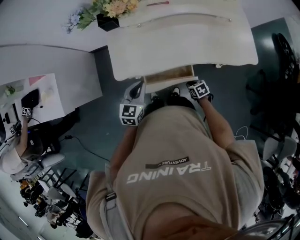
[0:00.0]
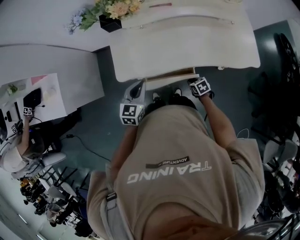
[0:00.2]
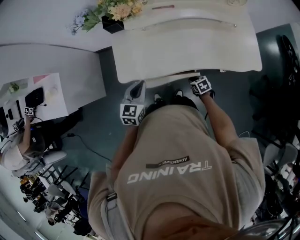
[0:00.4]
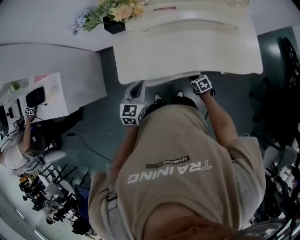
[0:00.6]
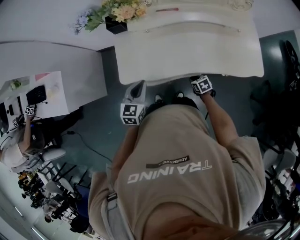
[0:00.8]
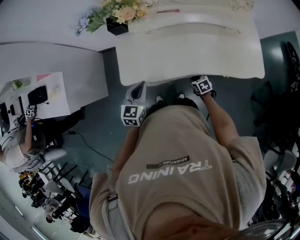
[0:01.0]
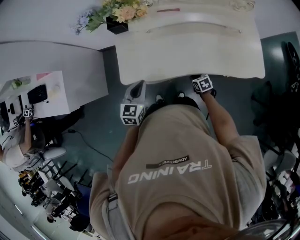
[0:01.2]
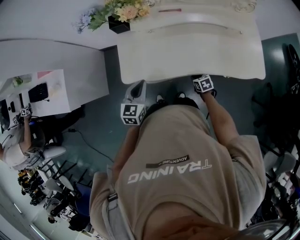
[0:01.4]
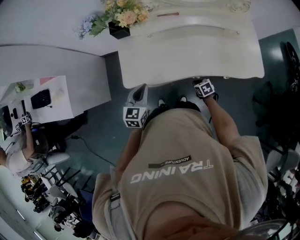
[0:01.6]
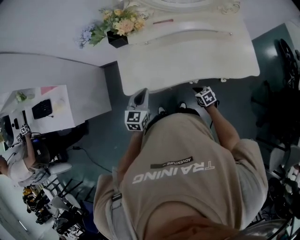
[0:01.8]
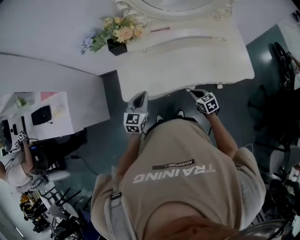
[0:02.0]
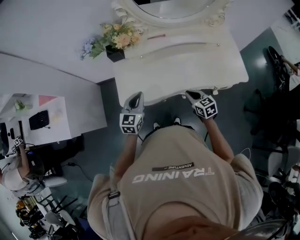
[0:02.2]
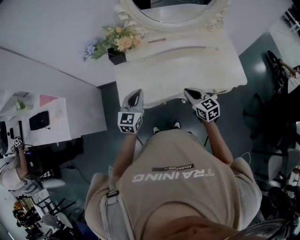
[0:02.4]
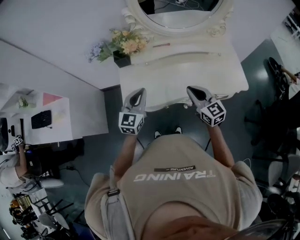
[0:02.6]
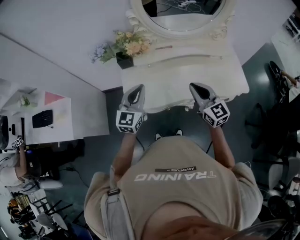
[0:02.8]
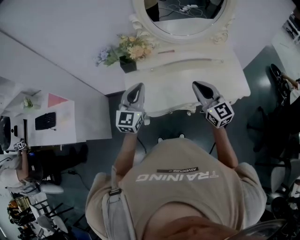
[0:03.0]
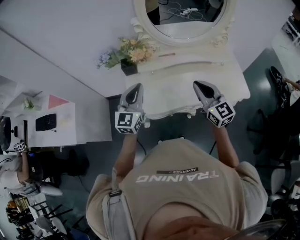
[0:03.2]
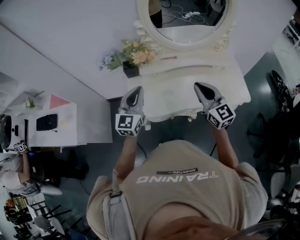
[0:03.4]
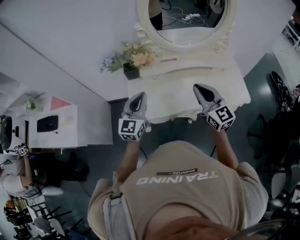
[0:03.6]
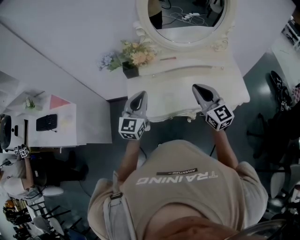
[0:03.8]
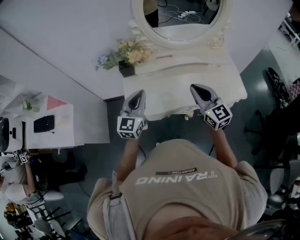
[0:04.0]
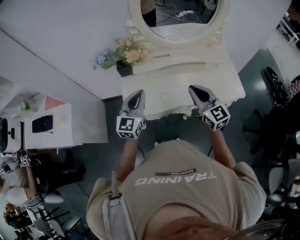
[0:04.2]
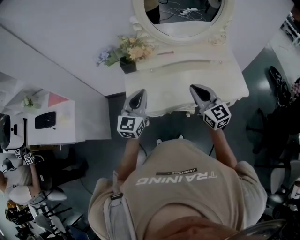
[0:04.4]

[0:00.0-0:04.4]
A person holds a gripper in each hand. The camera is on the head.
0:00.0 to 0:01.4: The right gripper moves forward, roughly 10 cm. The left gripper moves roughly 5 cm.
0:01.4 to 0:03.0: The left gripper travels upward by approximately 20 cm, and rotates approximately 30 degrees. Meanwhile the right gripper shifts approximately 50 cm upward, and tilts its fingers about 60 degrees upward.
0:03.0 to 0:04.4: The grippers stay close to where they were, moving slightly.

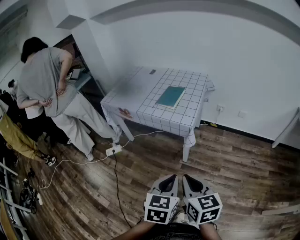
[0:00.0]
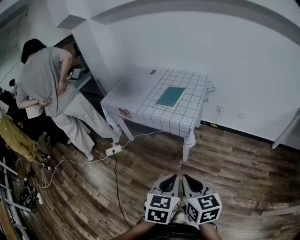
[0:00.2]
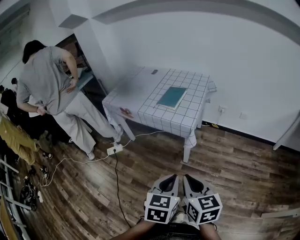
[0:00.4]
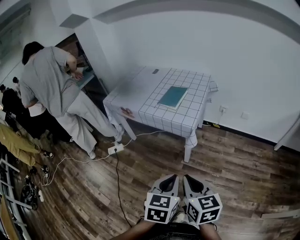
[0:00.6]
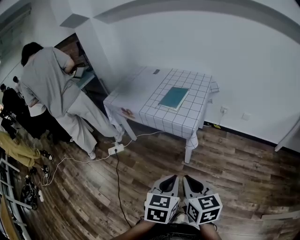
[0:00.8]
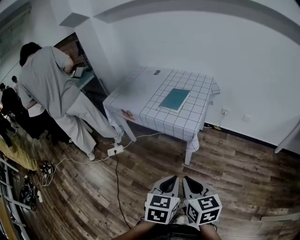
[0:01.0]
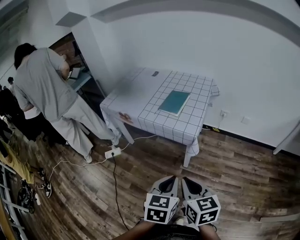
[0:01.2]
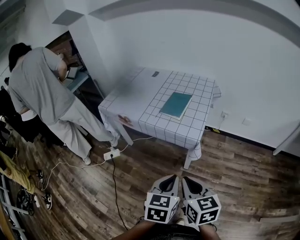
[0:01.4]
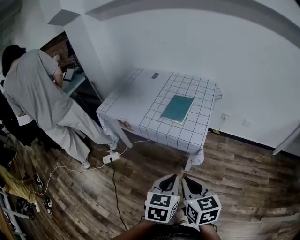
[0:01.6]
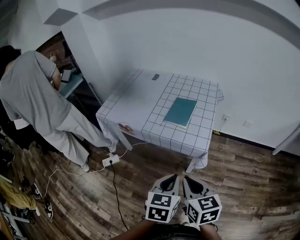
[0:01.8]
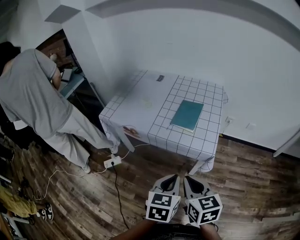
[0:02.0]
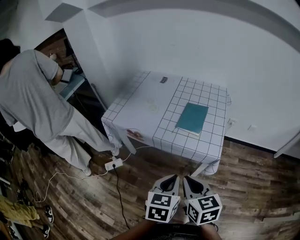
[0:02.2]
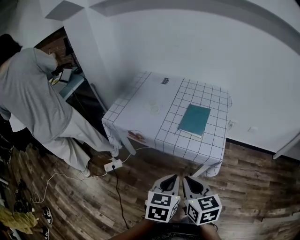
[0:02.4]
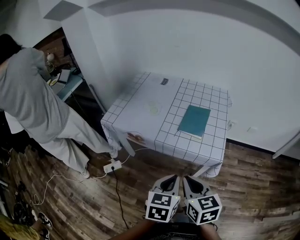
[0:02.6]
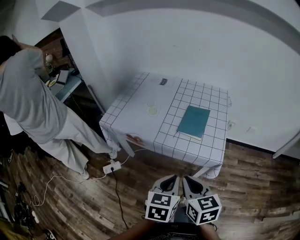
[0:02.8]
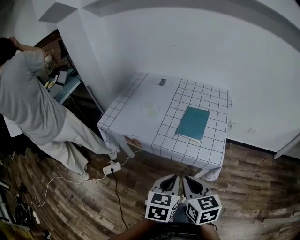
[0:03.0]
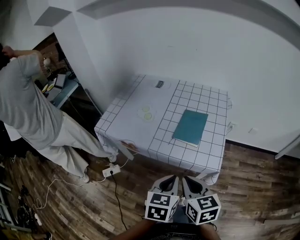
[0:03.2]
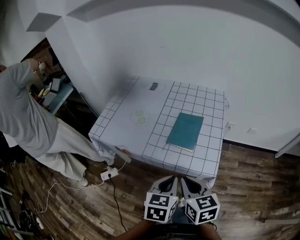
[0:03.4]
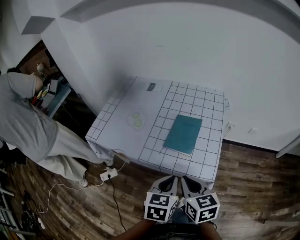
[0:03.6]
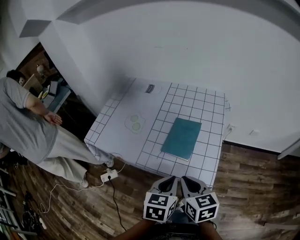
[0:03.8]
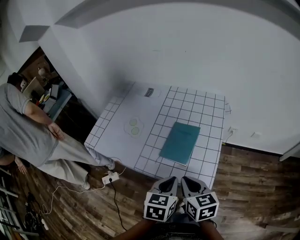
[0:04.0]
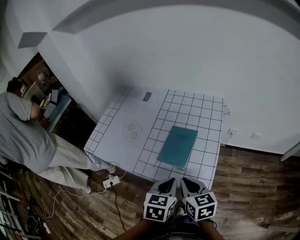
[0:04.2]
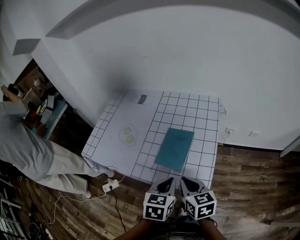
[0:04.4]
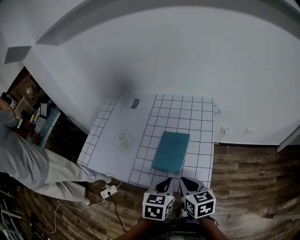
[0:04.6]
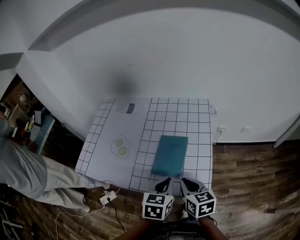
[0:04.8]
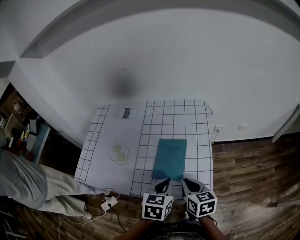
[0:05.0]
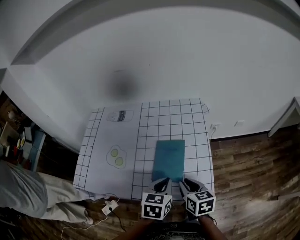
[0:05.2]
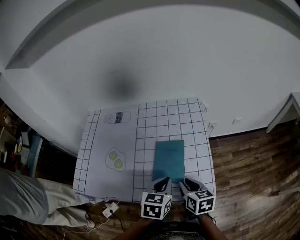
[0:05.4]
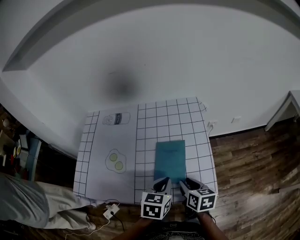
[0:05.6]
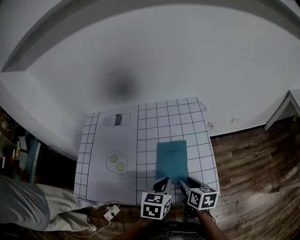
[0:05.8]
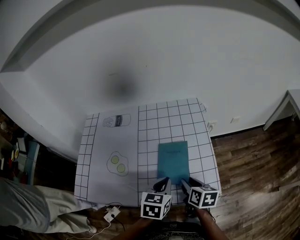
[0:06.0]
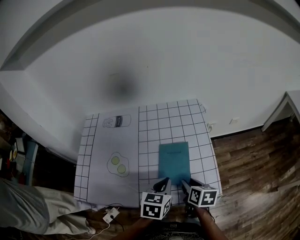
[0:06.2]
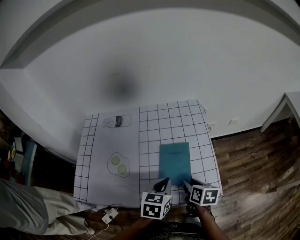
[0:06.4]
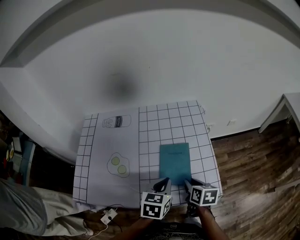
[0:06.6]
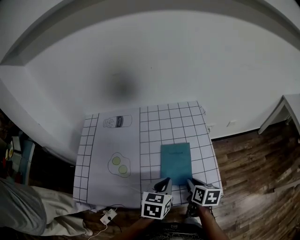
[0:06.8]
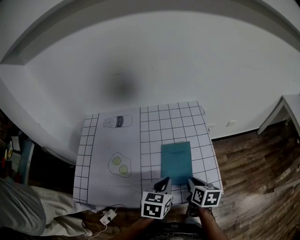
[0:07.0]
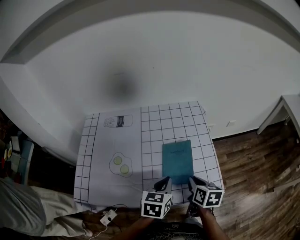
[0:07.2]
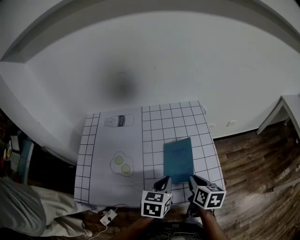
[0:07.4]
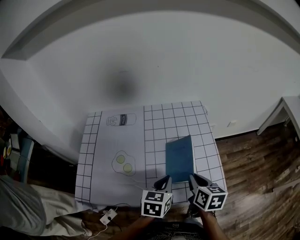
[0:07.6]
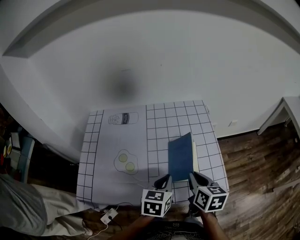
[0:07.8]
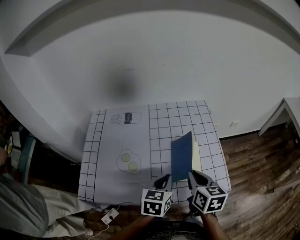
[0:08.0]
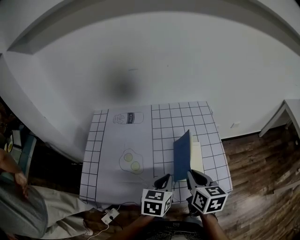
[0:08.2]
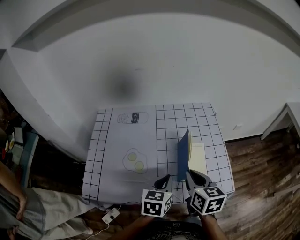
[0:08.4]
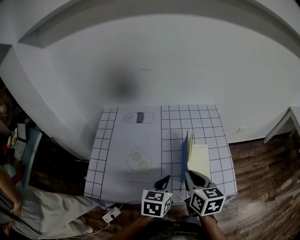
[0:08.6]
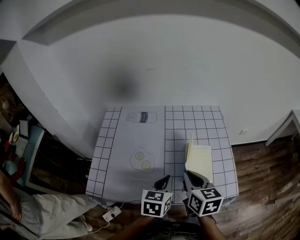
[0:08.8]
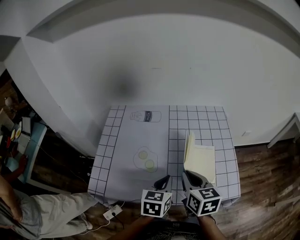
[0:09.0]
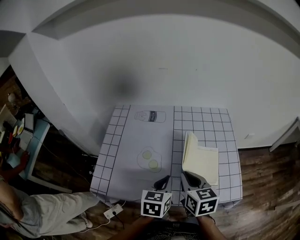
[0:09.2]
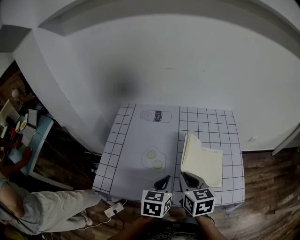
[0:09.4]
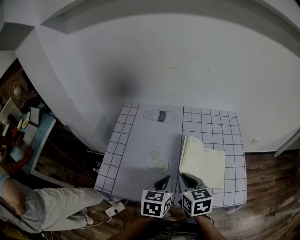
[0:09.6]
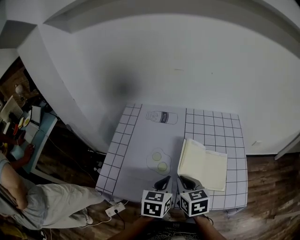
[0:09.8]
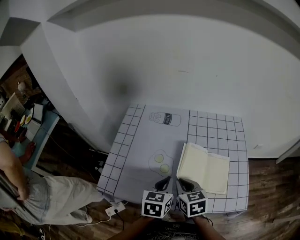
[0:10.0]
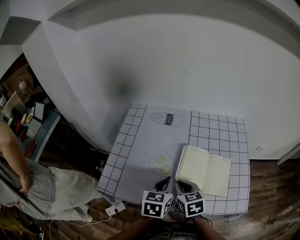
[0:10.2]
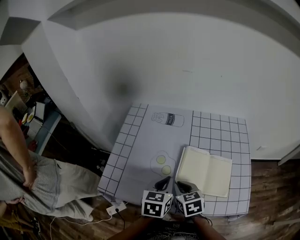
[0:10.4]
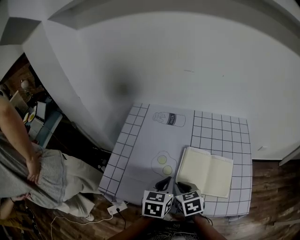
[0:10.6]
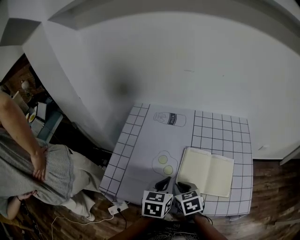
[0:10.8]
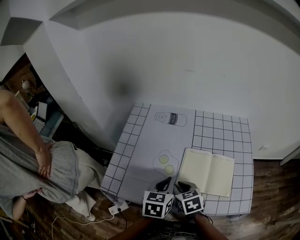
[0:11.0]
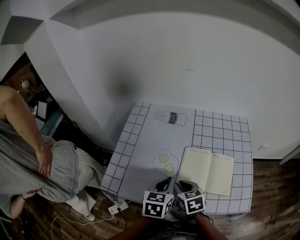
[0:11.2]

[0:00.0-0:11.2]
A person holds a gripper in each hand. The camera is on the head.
0:00.0 to 0:01.6: Both grippers travel together forward, some 15 cm.
0:01.6 to 0:03.2: The grippers both shift forward and to the left by some 20 cm.
0:03.2 to 0:04.8: The right gripper heads forward, to the right and downward, covering about 20 cm, while the left gripper shifts approximately 20 cm forward and to the right.
0:04.8 to 0:06.4: The left gripper moves to the left and forward, some 10 cm; the right gripper moves downward, approximately 5 cm, rotates some 30 degrees, and opens up.
0:06.4 to 0:08.0: The left gripper goes roughly 5 cm to the left; the right gripper shifts approximately 10 cm upward and to the left, and closes.
0:08.0 to 0:09.6: Both grippers move to the left, approximately 15 cm. The right gripper rotates approximately 20 degrees.
0:09.6 to 0:11.2: The right gripper travels downward by approximately 10 cm.

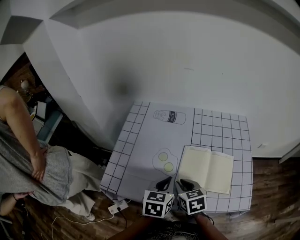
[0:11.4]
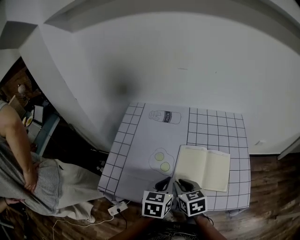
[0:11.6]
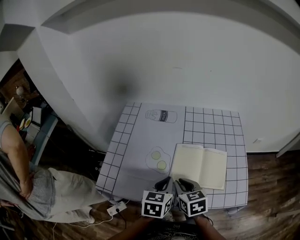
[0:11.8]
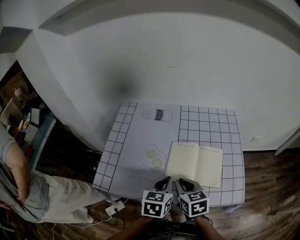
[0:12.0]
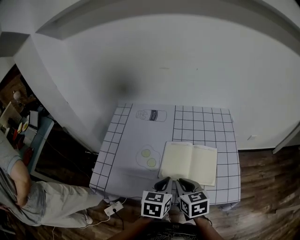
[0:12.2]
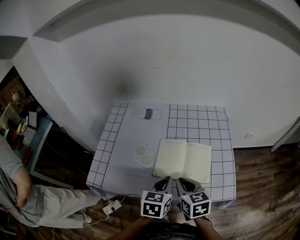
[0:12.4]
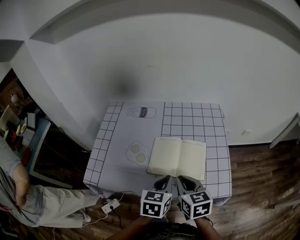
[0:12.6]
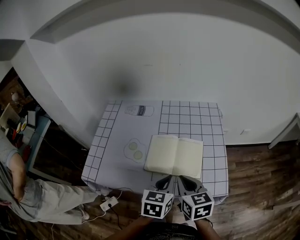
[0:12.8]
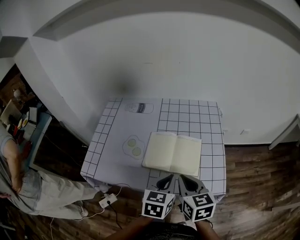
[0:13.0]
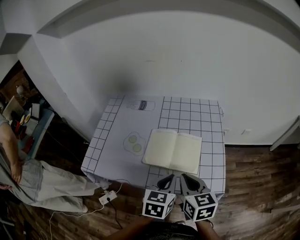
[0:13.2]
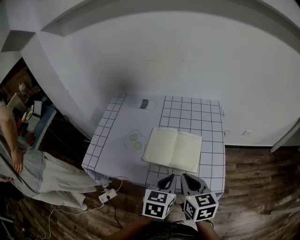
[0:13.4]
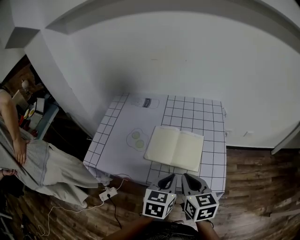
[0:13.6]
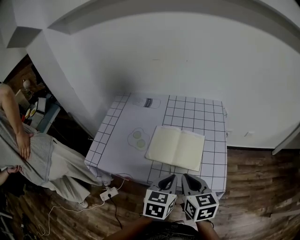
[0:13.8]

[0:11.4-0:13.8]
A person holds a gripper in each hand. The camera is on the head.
0:11.4 to 0:12.6: The right gripper heads to the right, upward and backward, covering approximately 15 cm; the left gripper travels to the right and backward by approximately 15 cm.
0:12.6 to 0:13.8: The grippers both shift backward by some 5 cm.

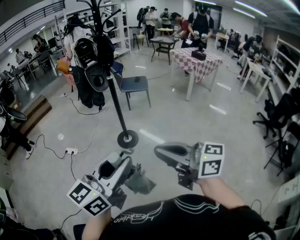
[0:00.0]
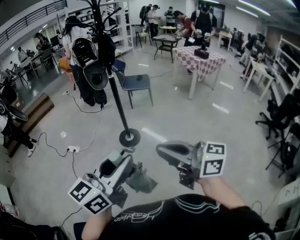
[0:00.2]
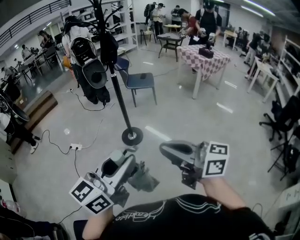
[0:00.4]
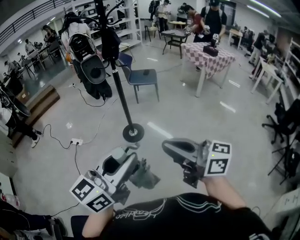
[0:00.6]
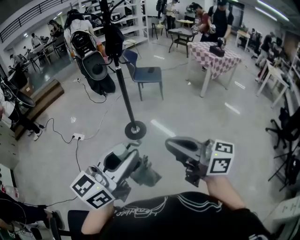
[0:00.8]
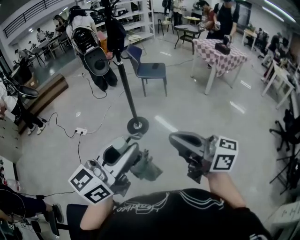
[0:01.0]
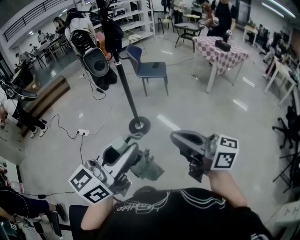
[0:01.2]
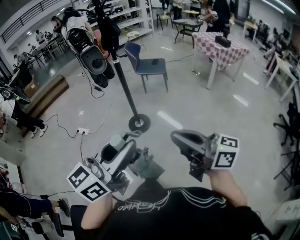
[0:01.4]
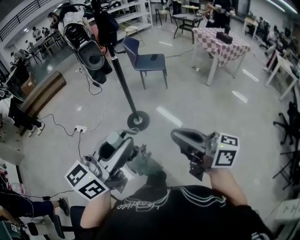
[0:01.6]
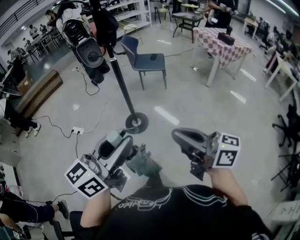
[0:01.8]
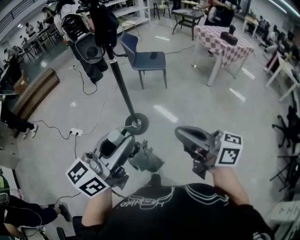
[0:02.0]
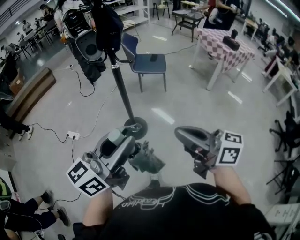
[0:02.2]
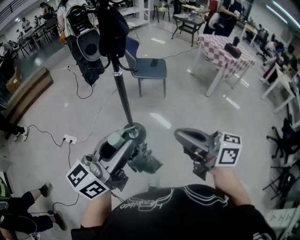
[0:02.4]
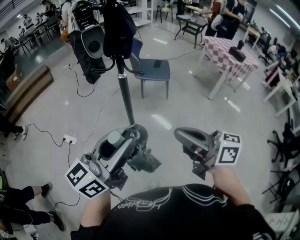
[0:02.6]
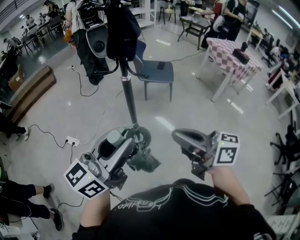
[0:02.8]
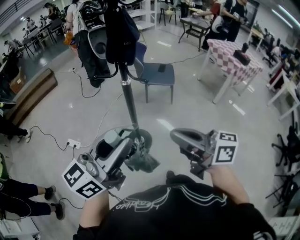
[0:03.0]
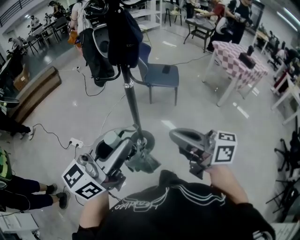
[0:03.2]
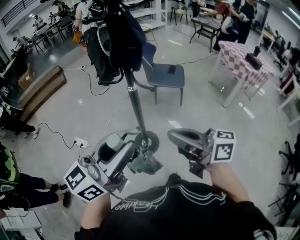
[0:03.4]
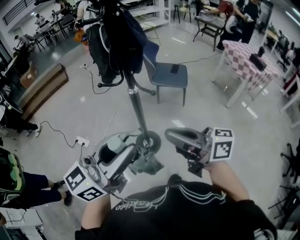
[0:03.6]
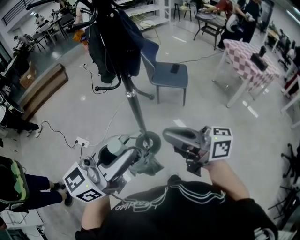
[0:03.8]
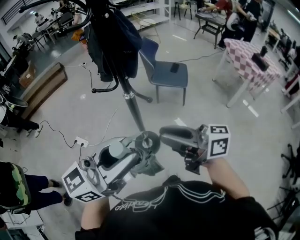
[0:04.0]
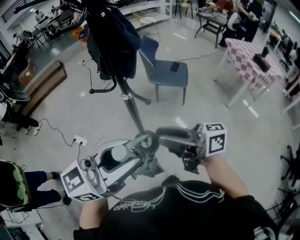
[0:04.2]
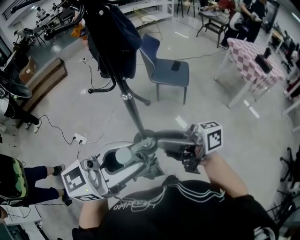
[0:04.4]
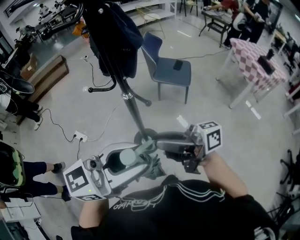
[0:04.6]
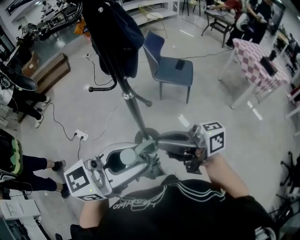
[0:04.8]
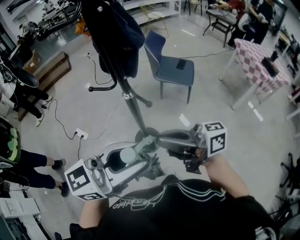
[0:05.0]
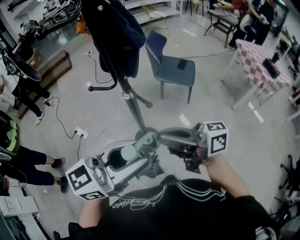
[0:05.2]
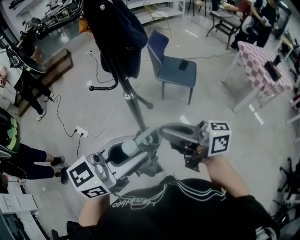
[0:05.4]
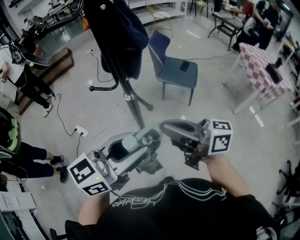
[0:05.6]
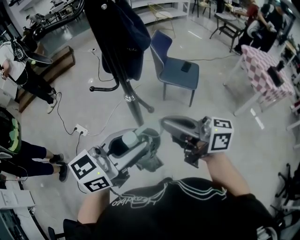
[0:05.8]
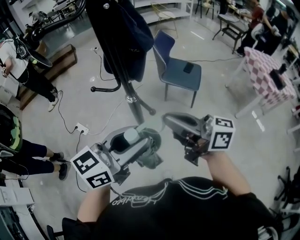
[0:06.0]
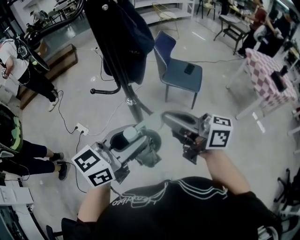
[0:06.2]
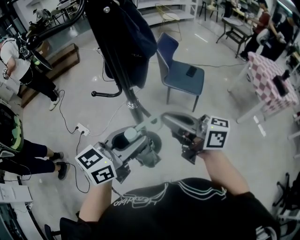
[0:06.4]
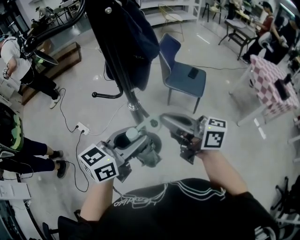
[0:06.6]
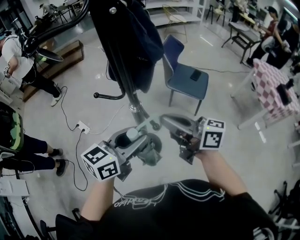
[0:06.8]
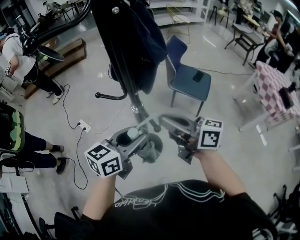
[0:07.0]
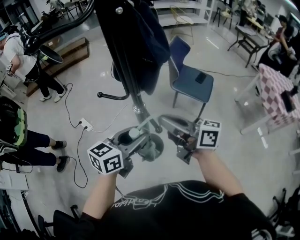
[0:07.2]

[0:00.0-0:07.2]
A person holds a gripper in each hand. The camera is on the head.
0:00.0 to 0:01.4: The two grippers go some 15 cm to the right and forward.
0:01.4 to 0:02.8: Both grippers move forward, some 35 cm.
0:02.8 to 0:04.4: The left gripper moves roughly 10 cm, while the right gripper changes place by roughly 15 cm, swivels about 40 degrees, and opens its fingers.
0:04.4 to 0:05.8: The left gripper ends up roughly 10 cm from where it was; the right gripper ends up roughly 10 cm from where it was, and closes.
0:05.8 to 0:07.2: The right gripper is displaced forward and downward by some 10 cm. Meanwhile the left gripper travels downward and forward by roughly 15 cm, and swivels about 20 degrees.
